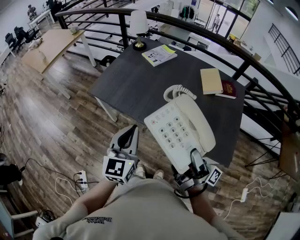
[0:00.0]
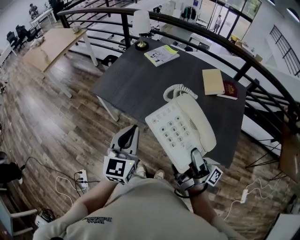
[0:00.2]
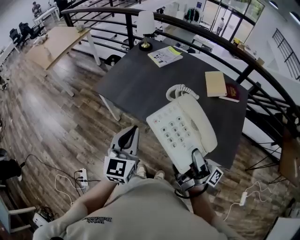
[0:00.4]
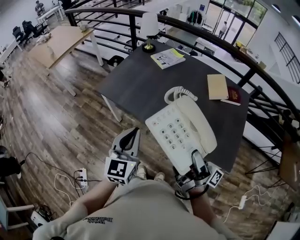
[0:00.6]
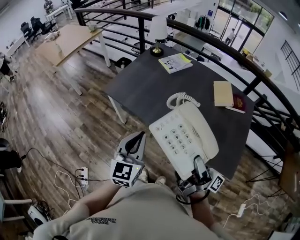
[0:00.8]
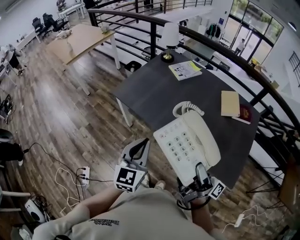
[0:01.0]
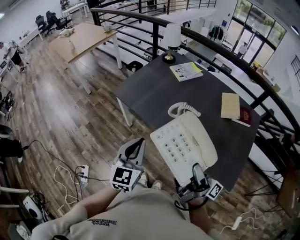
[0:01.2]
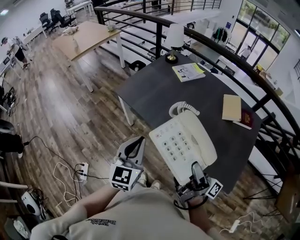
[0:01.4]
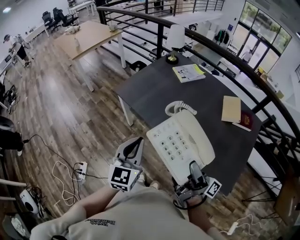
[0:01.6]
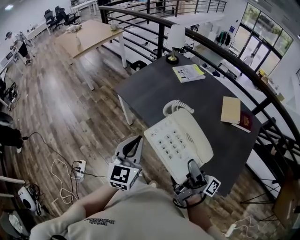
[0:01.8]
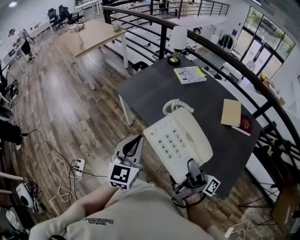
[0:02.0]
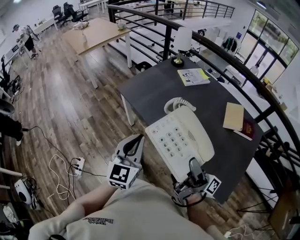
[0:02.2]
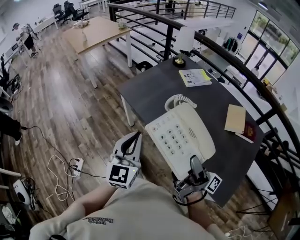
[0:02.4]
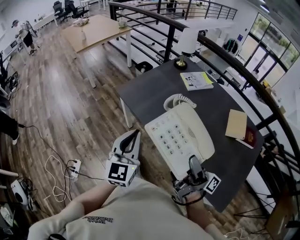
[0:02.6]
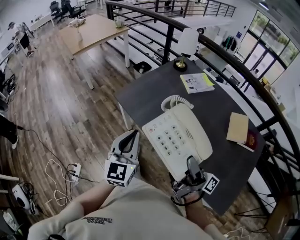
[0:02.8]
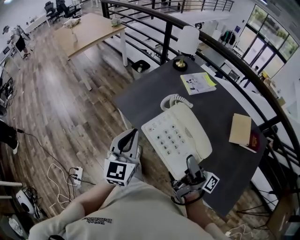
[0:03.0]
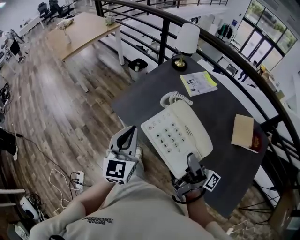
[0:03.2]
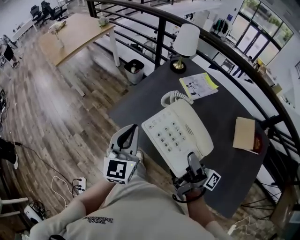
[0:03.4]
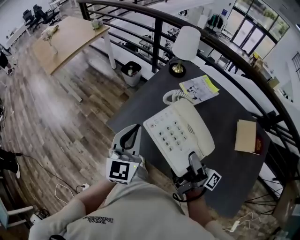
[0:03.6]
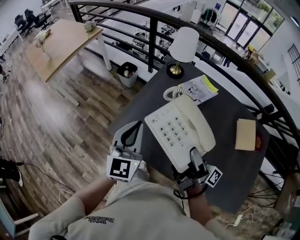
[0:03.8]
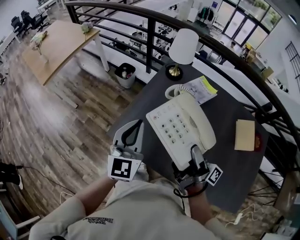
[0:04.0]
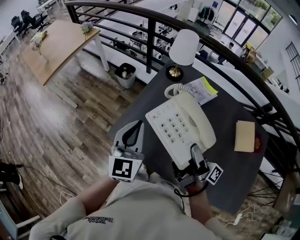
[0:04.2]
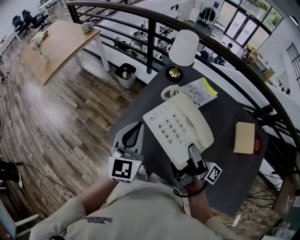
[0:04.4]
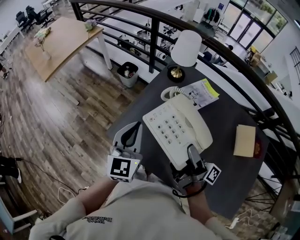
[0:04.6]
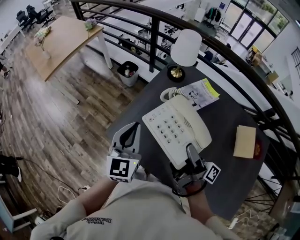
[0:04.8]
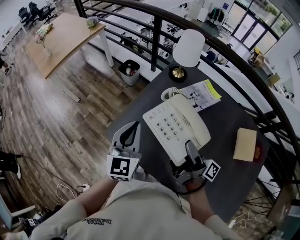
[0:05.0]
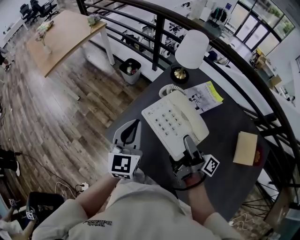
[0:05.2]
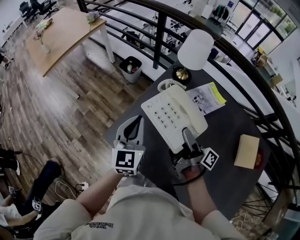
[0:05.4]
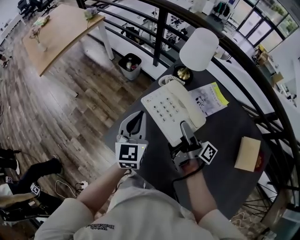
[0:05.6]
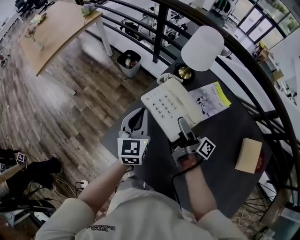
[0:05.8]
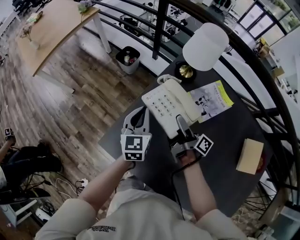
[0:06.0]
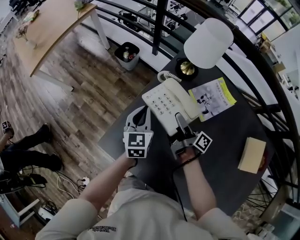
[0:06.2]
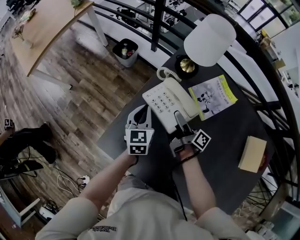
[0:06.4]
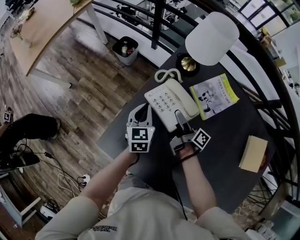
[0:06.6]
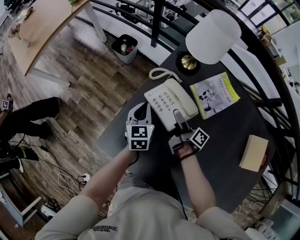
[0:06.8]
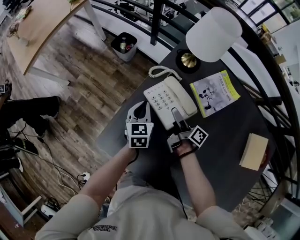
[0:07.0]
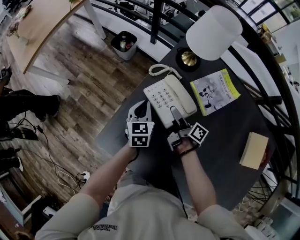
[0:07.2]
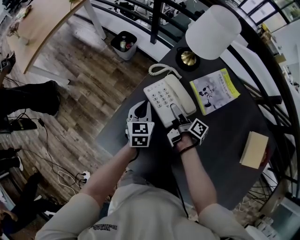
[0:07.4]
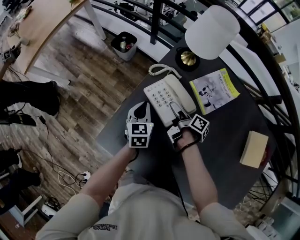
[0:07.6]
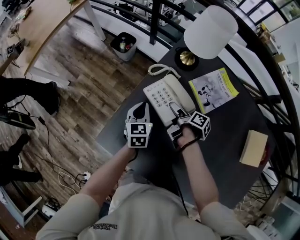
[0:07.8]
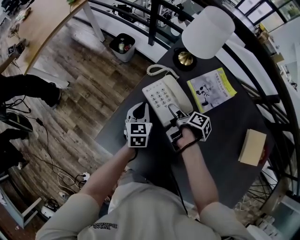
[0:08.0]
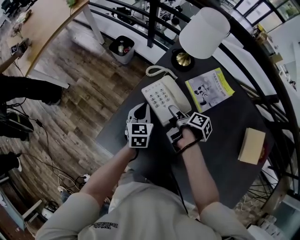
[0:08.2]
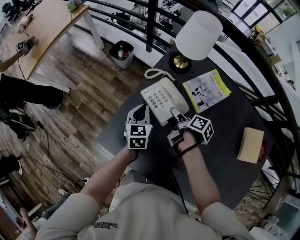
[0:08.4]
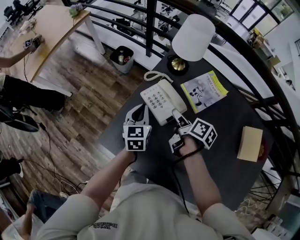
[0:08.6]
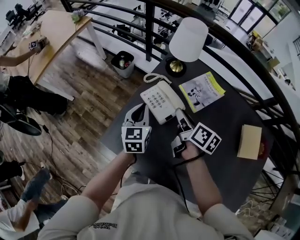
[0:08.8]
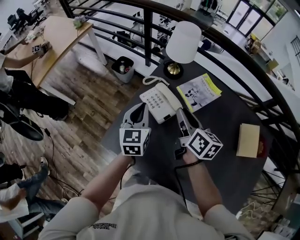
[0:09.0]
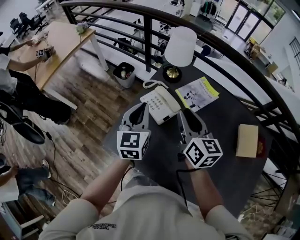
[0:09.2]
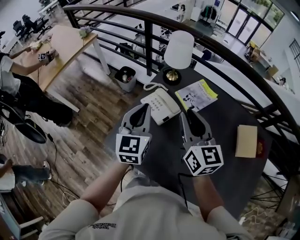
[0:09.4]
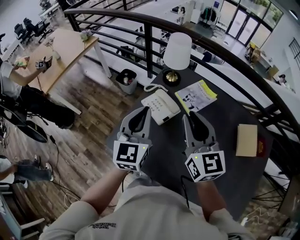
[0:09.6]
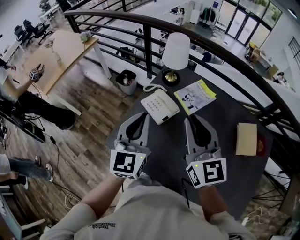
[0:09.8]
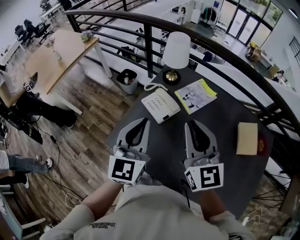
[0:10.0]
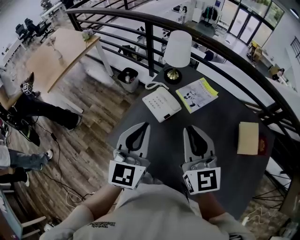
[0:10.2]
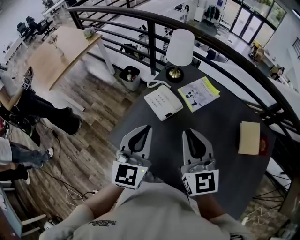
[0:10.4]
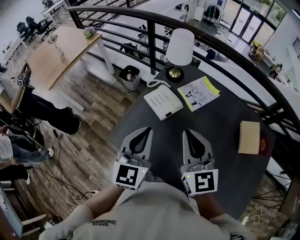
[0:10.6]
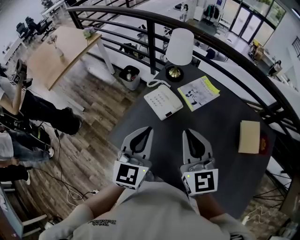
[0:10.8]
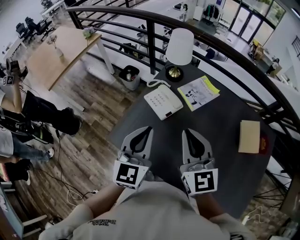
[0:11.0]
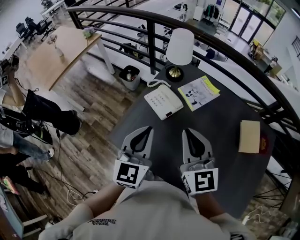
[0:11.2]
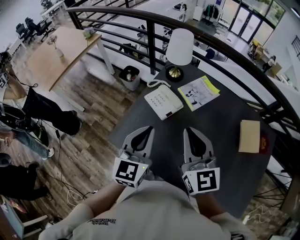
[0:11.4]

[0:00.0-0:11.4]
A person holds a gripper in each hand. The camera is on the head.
0:01.4 to 0:02.8: The left gripper ends up about 15 cm from where it was.
0:02.8 to 0:04.2: The left gripper ends up about 35 cm from where it was.
0:04.2 to 0:05.6: The left gripper ends up about 15 cm from where it was.
0:05.6 to 0:07.2: The left gripper is displaced downward by some 20 cm, and swivels about 20 degrees.
0:07.2 to 0:08.6: The left gripper moves upward, some 10 cm.
0:08.6 to 0:10.0: The left gripper goes some 25 cm upward, and changes its angle by about 30 degrees.
0:10.0 to 0:11.4: The left gripper ends up approximately 5 cm from where it was.

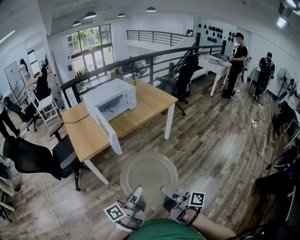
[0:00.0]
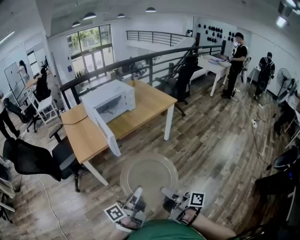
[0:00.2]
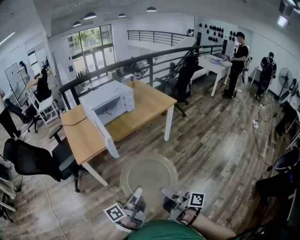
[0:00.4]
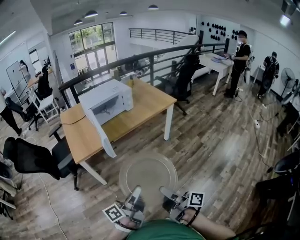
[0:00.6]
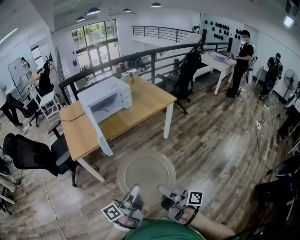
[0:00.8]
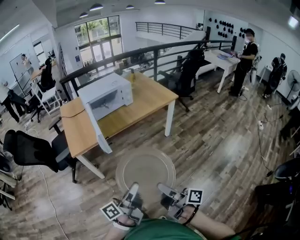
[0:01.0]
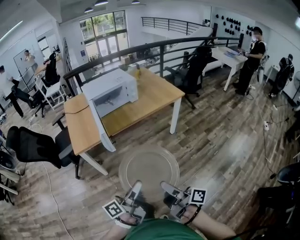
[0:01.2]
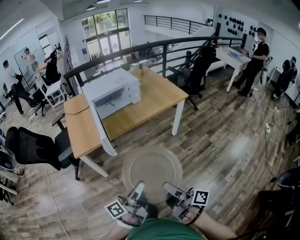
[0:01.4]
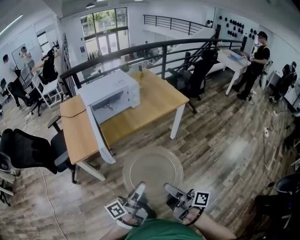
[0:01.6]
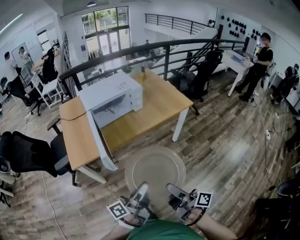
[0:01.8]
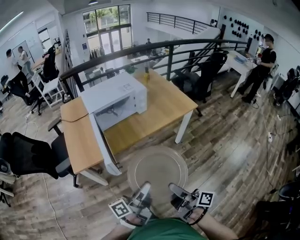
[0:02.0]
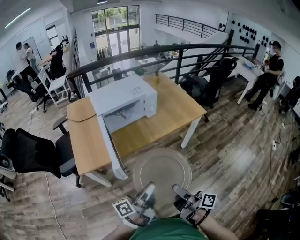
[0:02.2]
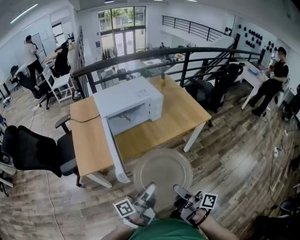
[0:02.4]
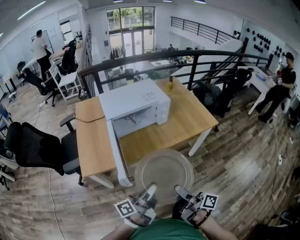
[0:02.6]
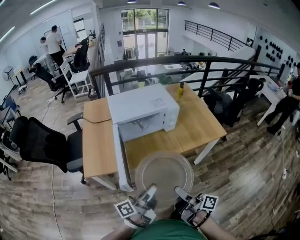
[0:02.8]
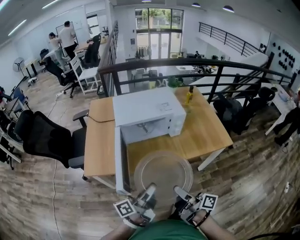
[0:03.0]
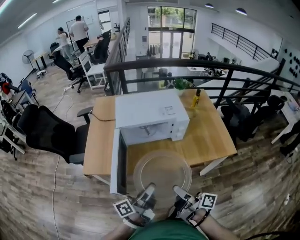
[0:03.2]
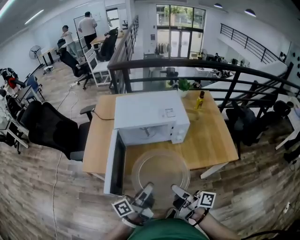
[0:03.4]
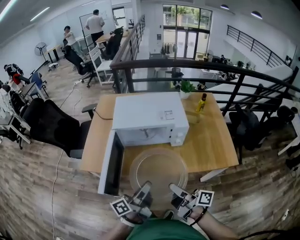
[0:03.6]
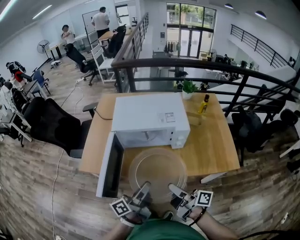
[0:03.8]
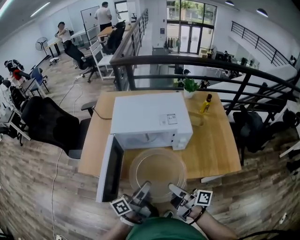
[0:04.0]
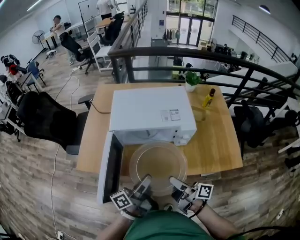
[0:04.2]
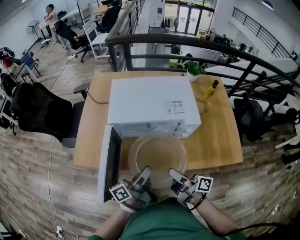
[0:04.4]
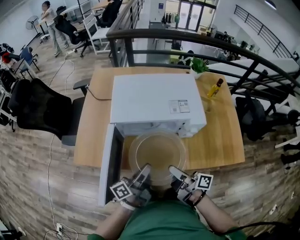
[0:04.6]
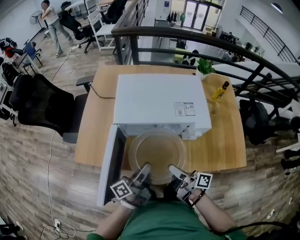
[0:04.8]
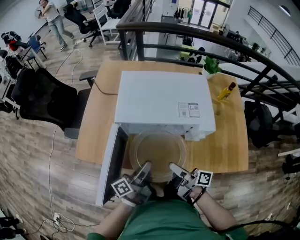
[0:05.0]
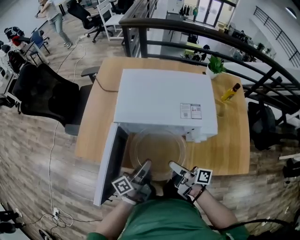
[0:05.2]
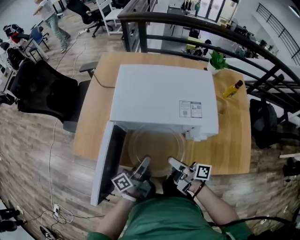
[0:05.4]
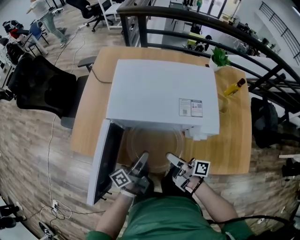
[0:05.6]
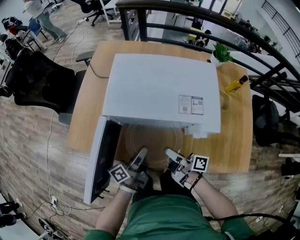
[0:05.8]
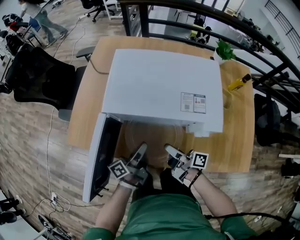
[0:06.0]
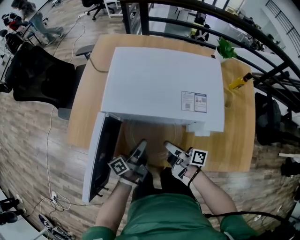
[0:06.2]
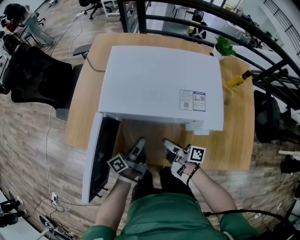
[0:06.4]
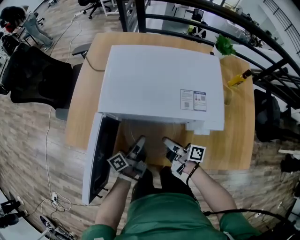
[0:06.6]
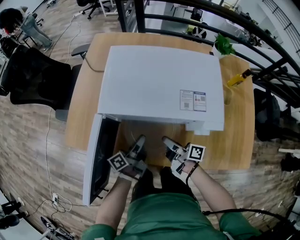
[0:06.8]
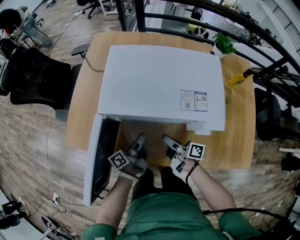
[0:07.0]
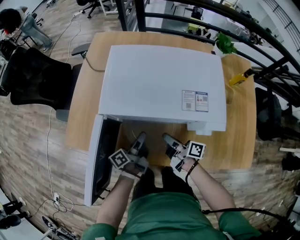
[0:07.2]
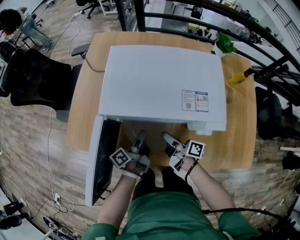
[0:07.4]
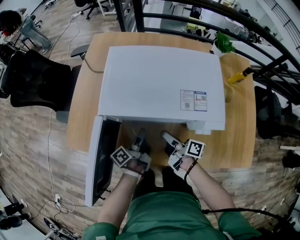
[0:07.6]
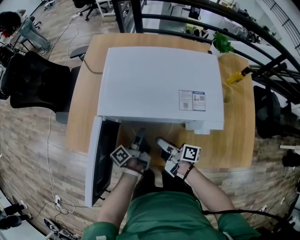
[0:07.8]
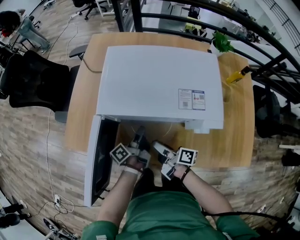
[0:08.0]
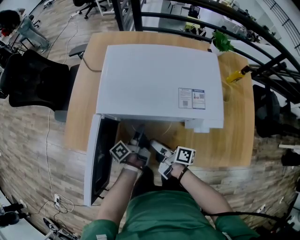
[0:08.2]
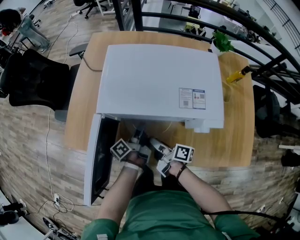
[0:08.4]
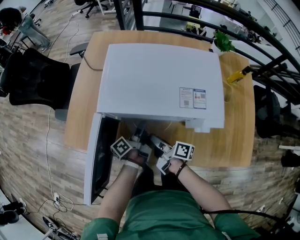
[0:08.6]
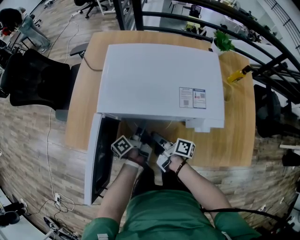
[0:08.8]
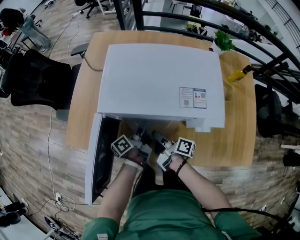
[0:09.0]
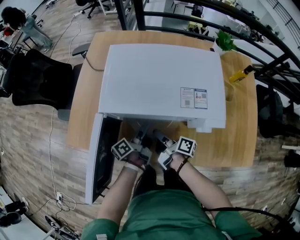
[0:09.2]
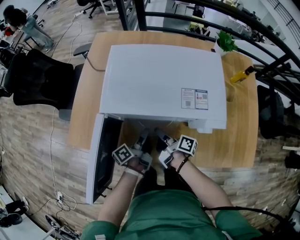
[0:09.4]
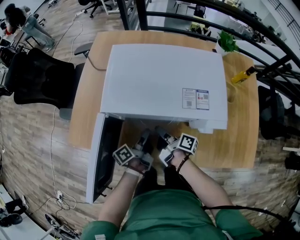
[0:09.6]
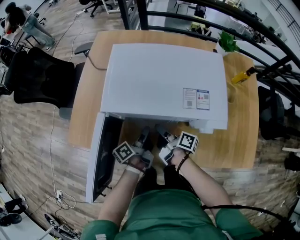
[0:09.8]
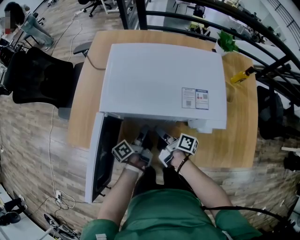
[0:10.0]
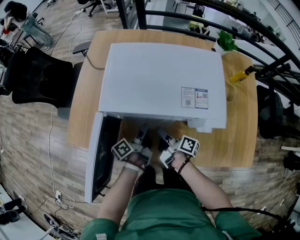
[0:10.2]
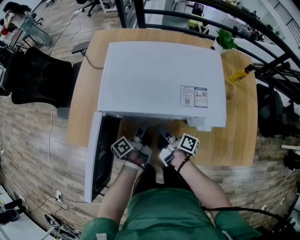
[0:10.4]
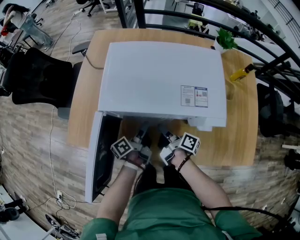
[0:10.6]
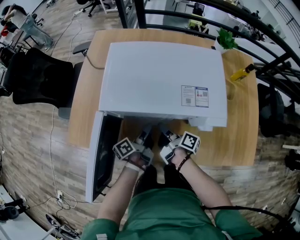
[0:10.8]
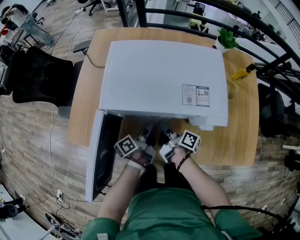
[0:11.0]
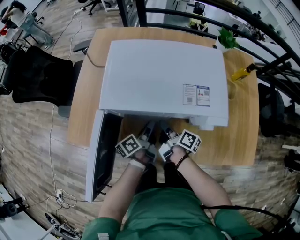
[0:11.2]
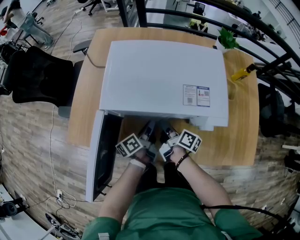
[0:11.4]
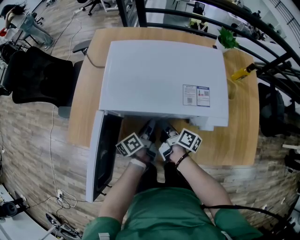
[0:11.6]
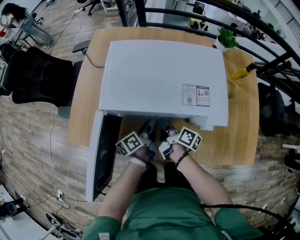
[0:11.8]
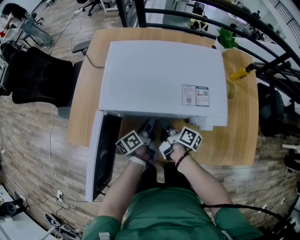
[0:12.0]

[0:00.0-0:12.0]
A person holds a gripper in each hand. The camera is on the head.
0:00.0 to 0:01.6: The left gripper changes place by about 20 cm.
0:01.6 to 0:03.0: The left gripper changes place by roughly 30 cm.
0:03.0 to 0:04.4: The left gripper ends up some 20 cm from where it was.
0:04.4 to 0:06.0: The left gripper heads downward, covering approximately 15 cm.
0:06.0 to 0:07.6: The left gripper ends up roughly 5 cm from where it was.

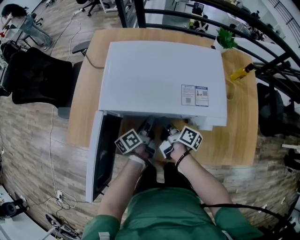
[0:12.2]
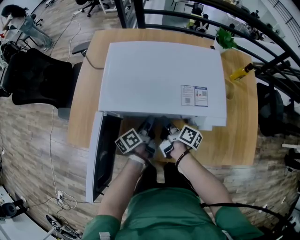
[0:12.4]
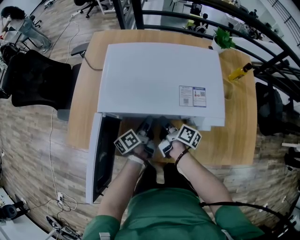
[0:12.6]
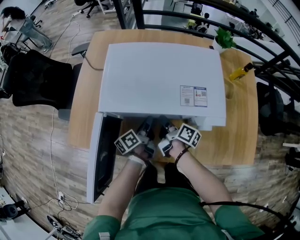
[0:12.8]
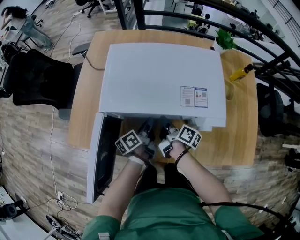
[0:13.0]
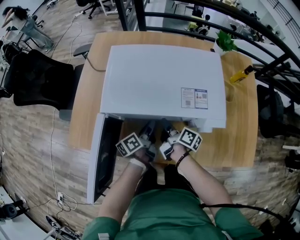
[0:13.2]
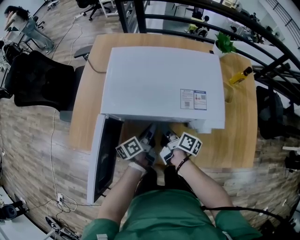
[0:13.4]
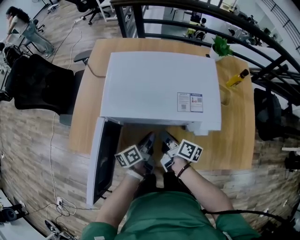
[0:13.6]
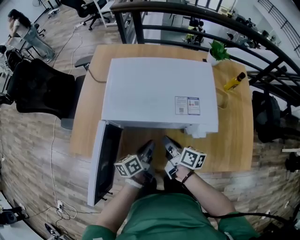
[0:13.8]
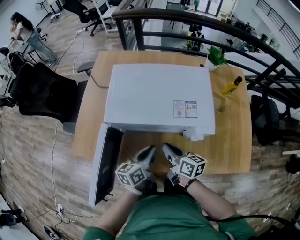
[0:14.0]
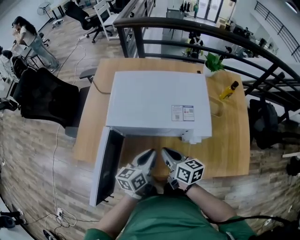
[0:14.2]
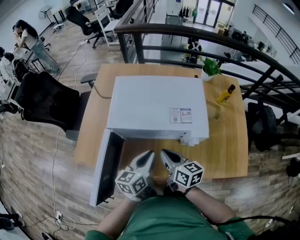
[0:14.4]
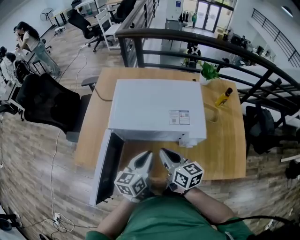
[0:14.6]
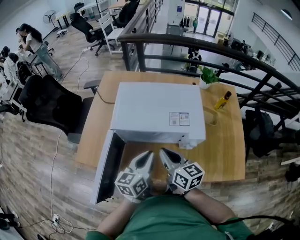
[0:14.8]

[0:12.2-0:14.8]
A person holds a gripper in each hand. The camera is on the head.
0:13.4 to 0:14.8: The left gripper heads upward, covering approximately 20 cm, and twists some 40 degrees clockwise, seen from behind.
